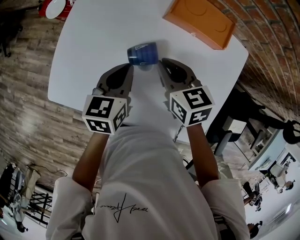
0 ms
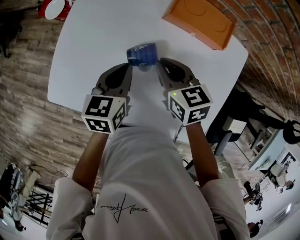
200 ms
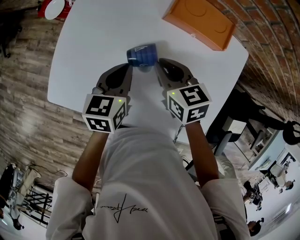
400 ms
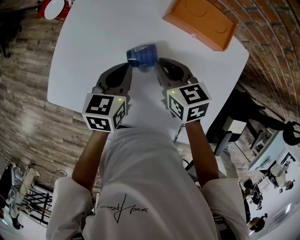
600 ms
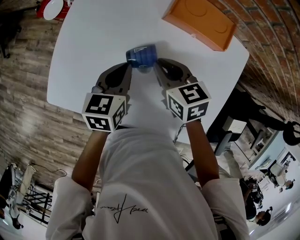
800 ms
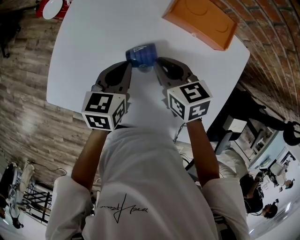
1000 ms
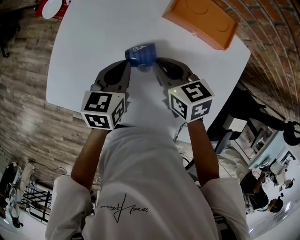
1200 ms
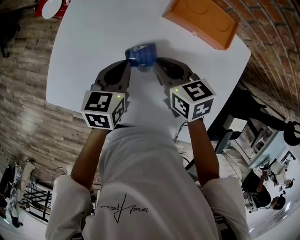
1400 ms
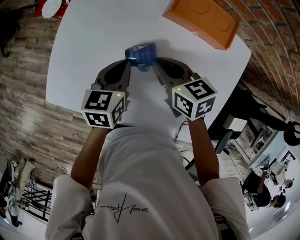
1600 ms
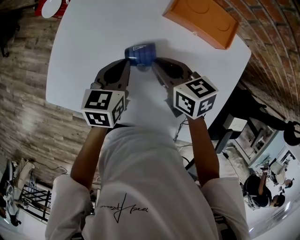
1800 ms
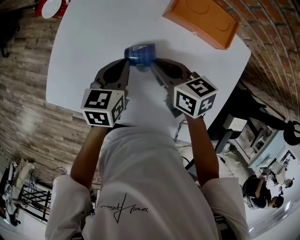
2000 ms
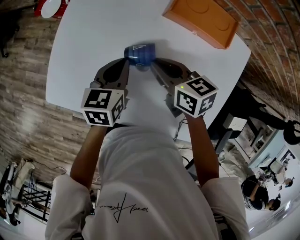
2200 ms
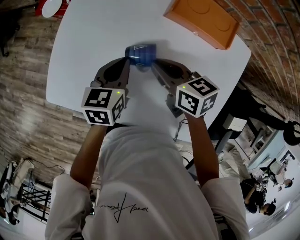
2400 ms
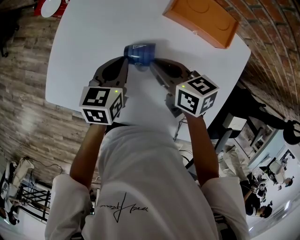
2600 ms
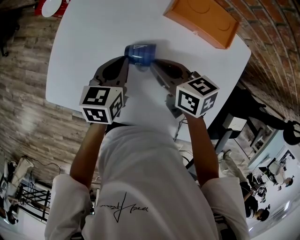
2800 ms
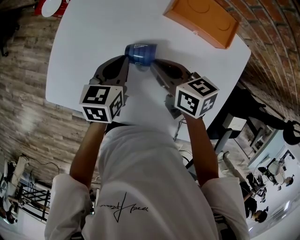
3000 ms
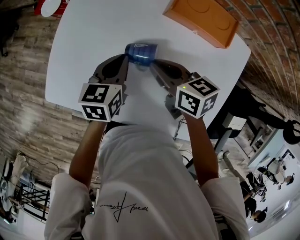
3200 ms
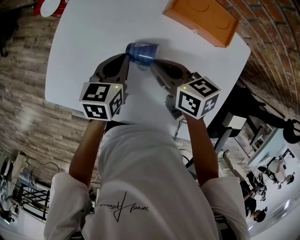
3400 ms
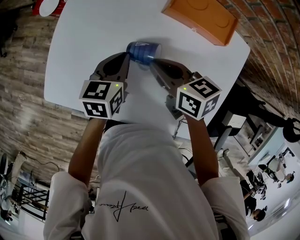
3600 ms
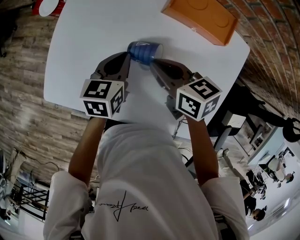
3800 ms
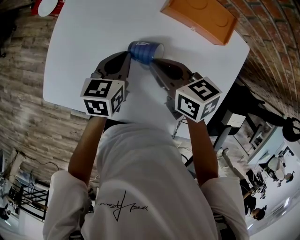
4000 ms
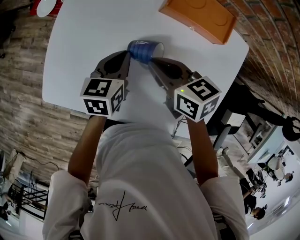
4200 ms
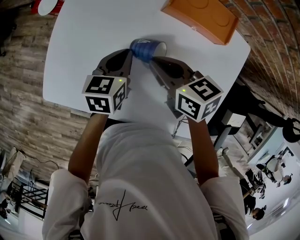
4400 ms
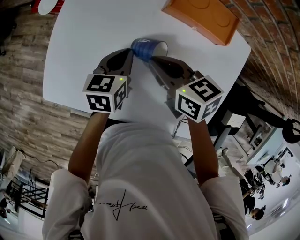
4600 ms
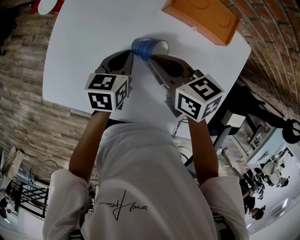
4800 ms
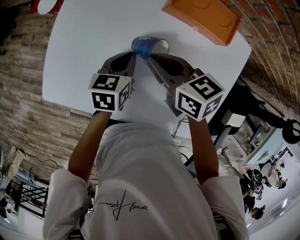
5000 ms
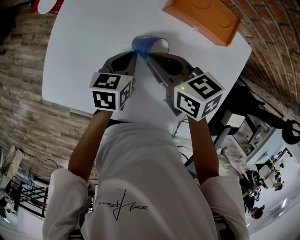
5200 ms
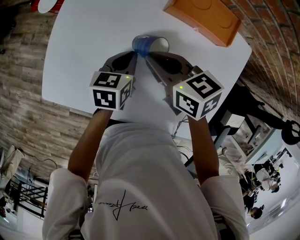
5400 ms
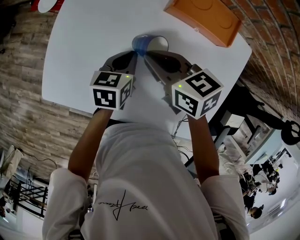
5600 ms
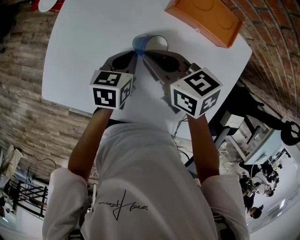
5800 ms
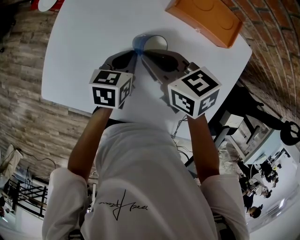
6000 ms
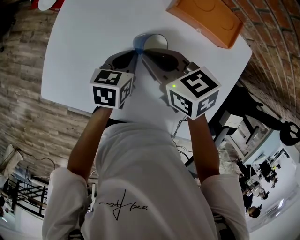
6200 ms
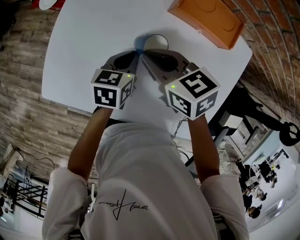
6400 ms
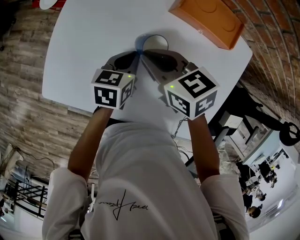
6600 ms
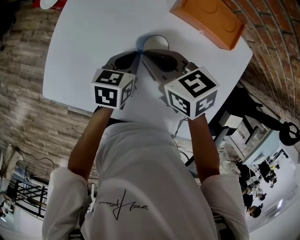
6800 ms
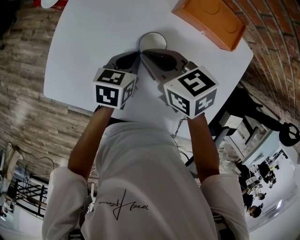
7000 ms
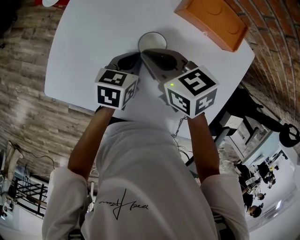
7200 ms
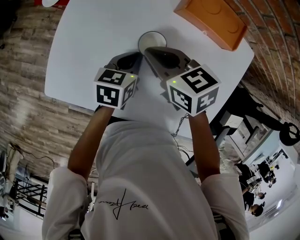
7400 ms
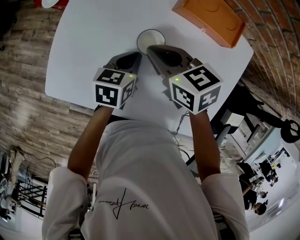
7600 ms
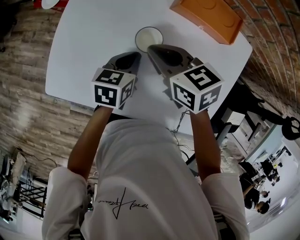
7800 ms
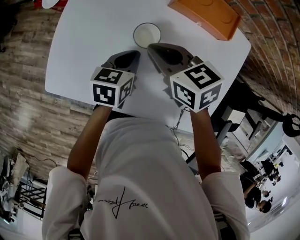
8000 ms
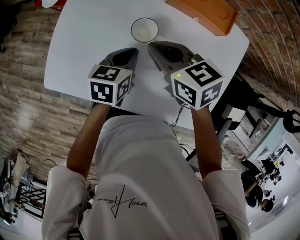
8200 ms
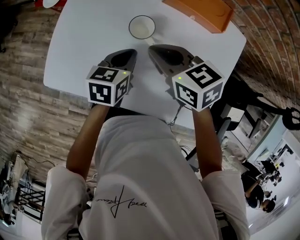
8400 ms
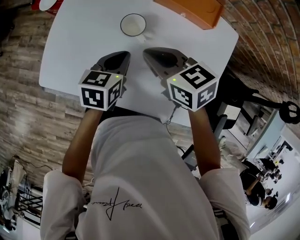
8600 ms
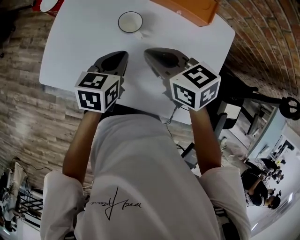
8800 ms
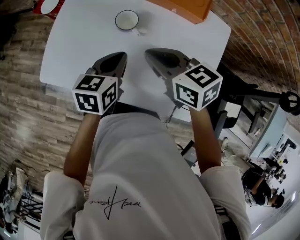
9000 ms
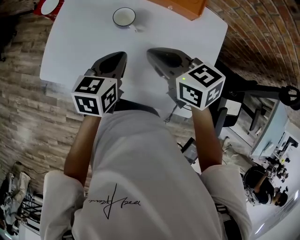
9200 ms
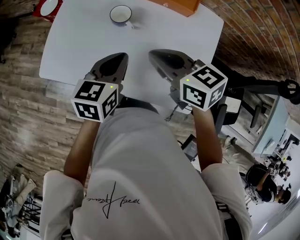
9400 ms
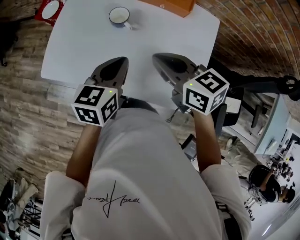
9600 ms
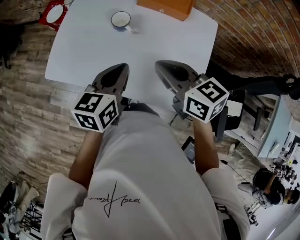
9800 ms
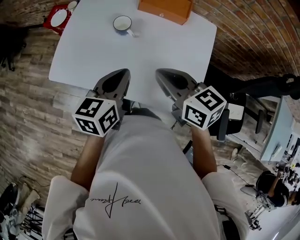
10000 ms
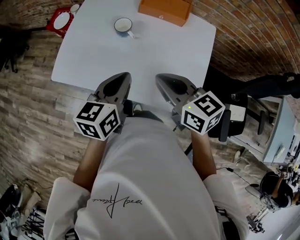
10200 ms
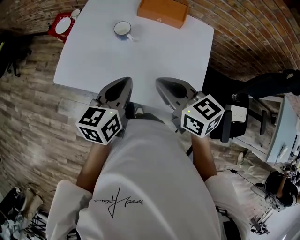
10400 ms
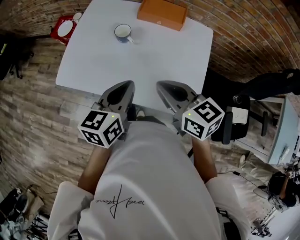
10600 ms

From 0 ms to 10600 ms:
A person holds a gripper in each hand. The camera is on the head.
From 0 ms to 1600 ms: The grippers move only a little.
From 1600 ms to 6000 ms: The grippers stay close to where they were, moving slightly.
From 6000 ms to 7600 ms: The grippers move only a little.
From 7600 ms to 9000 ms: The right gripper heads backward and upward, covering roughly 15 cm; the left gripper goes some 15 cm upward and backward.
From 9000 ms to 10600 ms: Both grippers move backward and upward, some 20 cm.

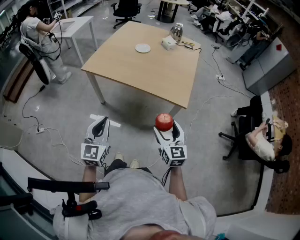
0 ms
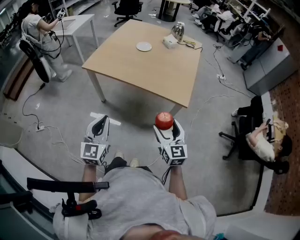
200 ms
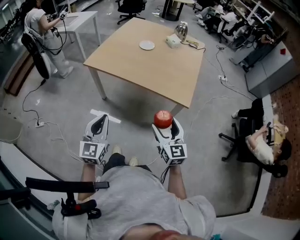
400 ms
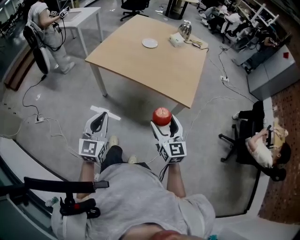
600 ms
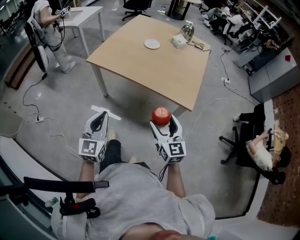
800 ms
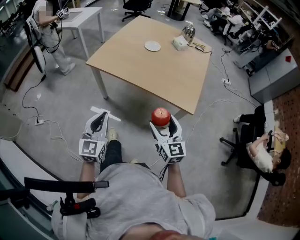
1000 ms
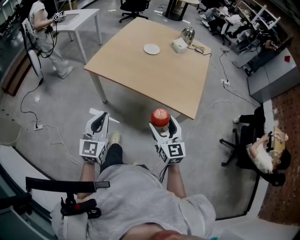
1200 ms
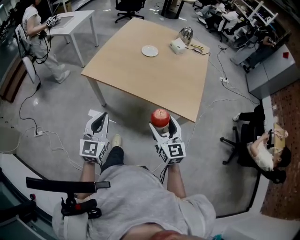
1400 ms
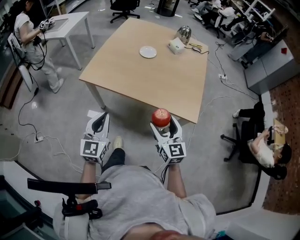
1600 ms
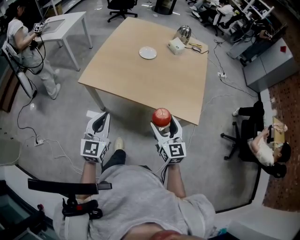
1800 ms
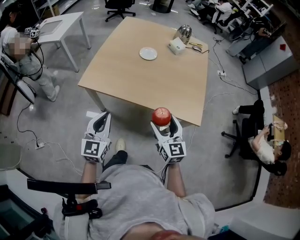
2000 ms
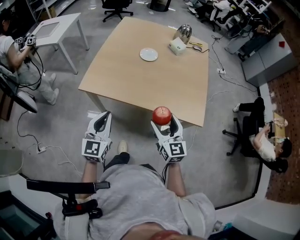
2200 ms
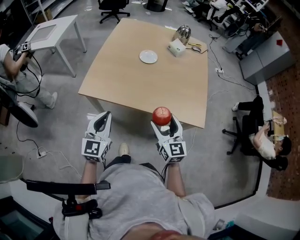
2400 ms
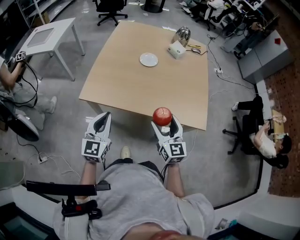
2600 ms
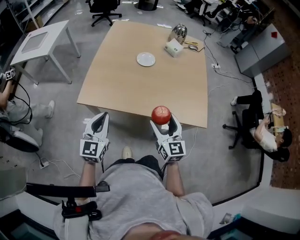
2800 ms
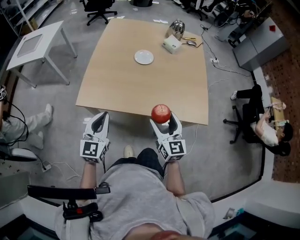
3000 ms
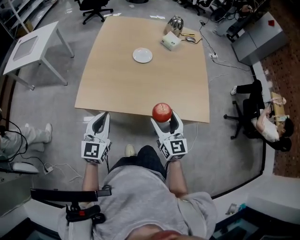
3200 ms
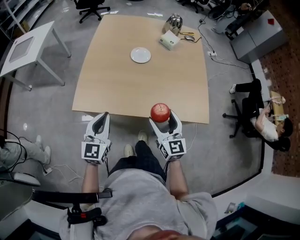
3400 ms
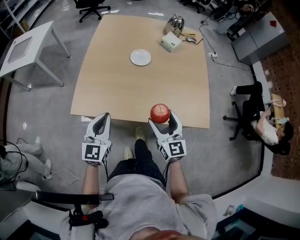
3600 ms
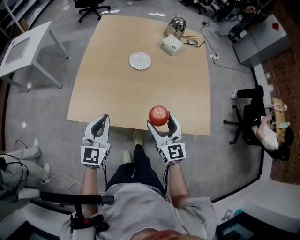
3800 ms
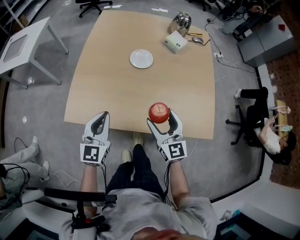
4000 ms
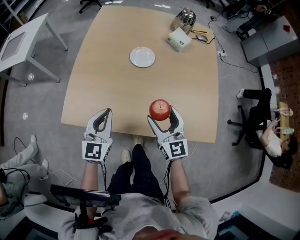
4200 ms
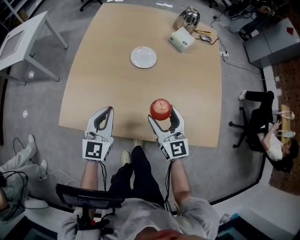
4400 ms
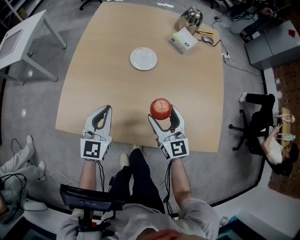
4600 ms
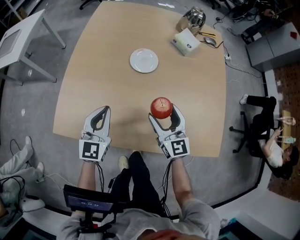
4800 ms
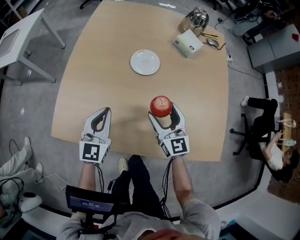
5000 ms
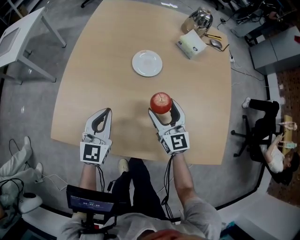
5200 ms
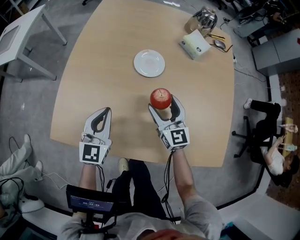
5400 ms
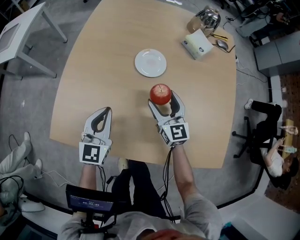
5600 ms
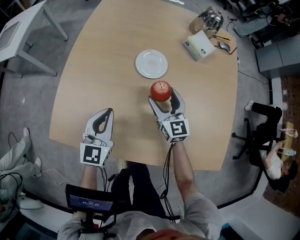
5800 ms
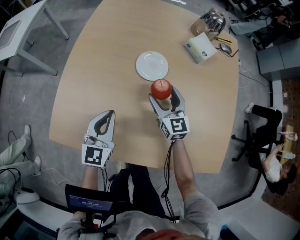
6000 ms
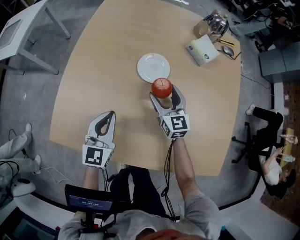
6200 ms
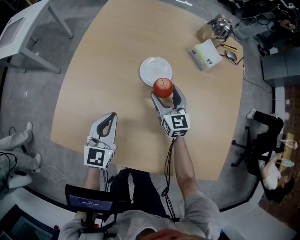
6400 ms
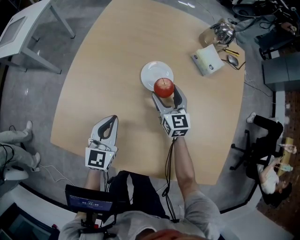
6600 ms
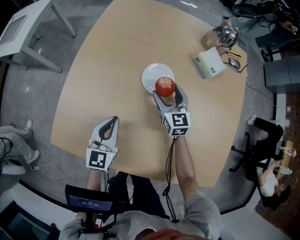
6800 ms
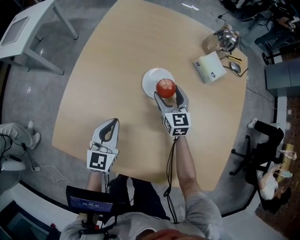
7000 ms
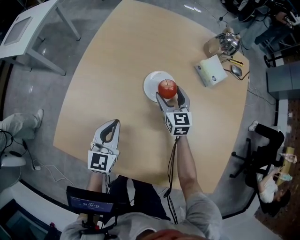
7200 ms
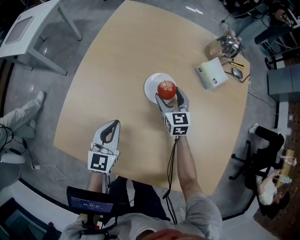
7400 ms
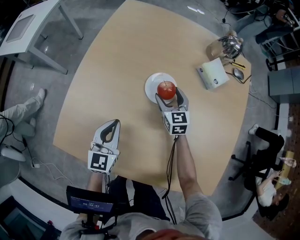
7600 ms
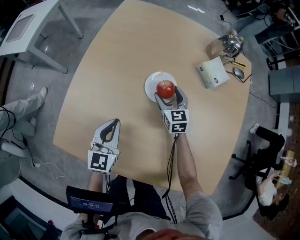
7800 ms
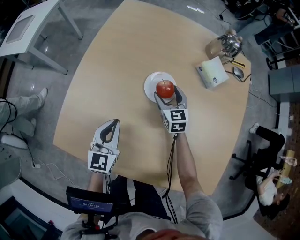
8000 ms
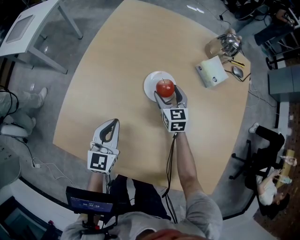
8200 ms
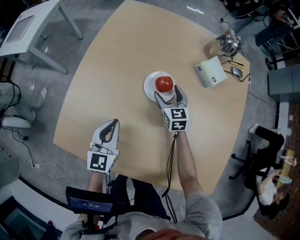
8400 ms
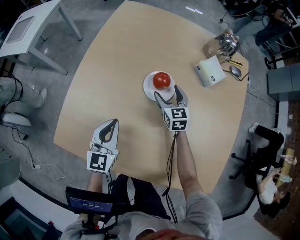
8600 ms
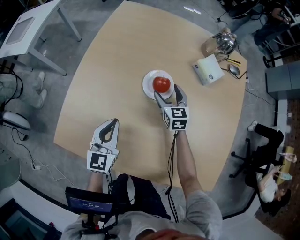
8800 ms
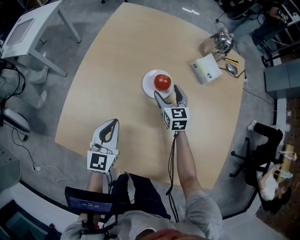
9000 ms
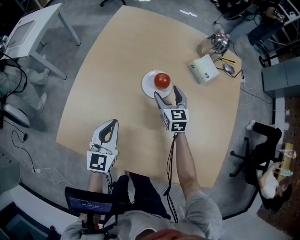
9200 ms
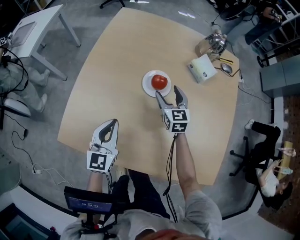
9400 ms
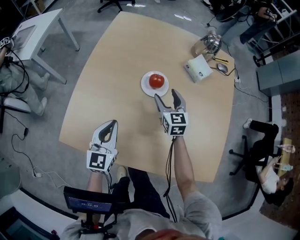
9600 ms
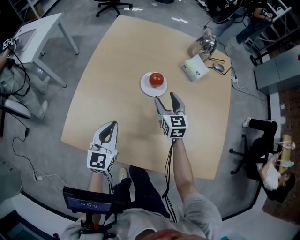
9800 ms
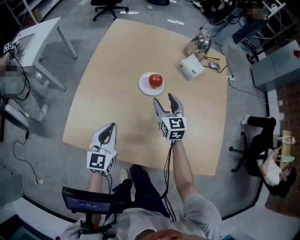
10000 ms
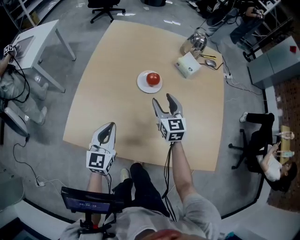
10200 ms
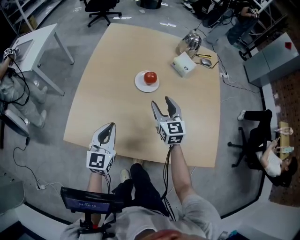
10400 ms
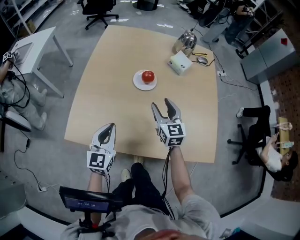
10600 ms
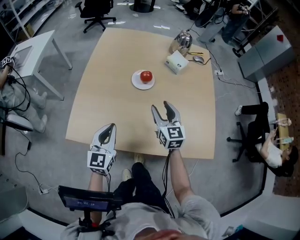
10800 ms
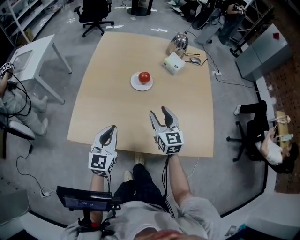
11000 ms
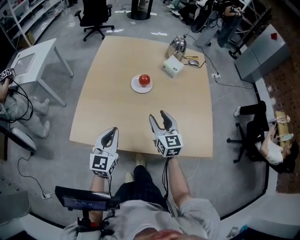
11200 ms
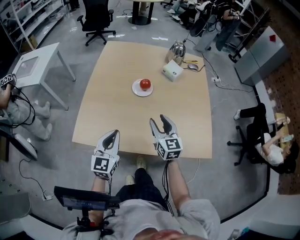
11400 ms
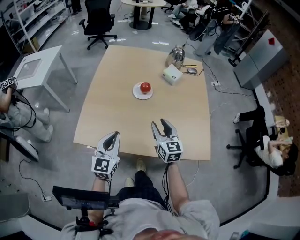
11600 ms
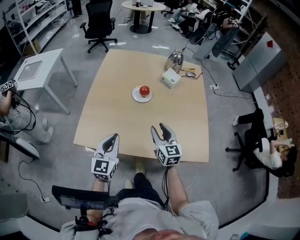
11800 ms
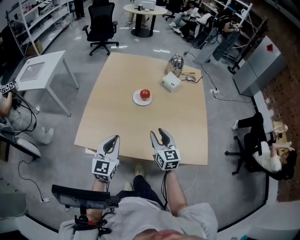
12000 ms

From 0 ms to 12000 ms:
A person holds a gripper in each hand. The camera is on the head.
From 0 ms to 1600 ms: The left gripper is displaced forward by approximately 20 cm. Meanwhile the right gripper heads forward and to the left, covering some 20 cm.
From 1600 ms to 3000 ms: The two grippers go roughly 20 cm forward and to the left.
From 3000 ms to 4400 ms: The two grippers go roughly 25 cm forward and downward.
From 4400 ms to 6000 ms: The right gripper goes some 25 cm forward and downward. Meanwhile the left gripper travels forward and downward by about 15 cm.
From 6000 ms to 7600 ms: The right gripper goes approximately 10 cm forward.
From 7600 ms to 9000 ms: There are only small adjustments of the grippers.
From 9000 ms to 10400 ms: The right gripper heads backward and upward, covering some 20 cm, while the left gripper shifts approximately 10 cm backward.
From 10400 ms to 12000 ms: The right gripper travels backward by approximately 20 cm. Meanwhile the left gripper goes roughly 15 cm backward and upward.

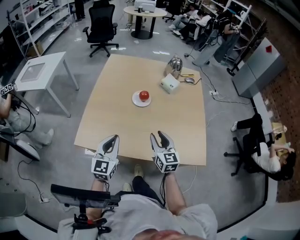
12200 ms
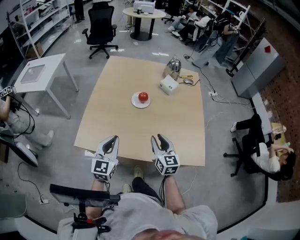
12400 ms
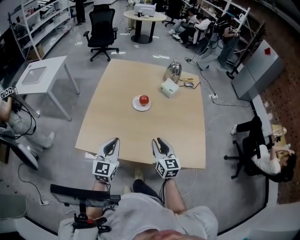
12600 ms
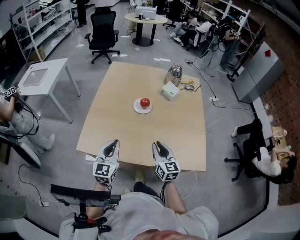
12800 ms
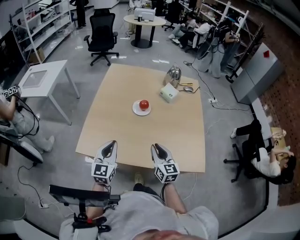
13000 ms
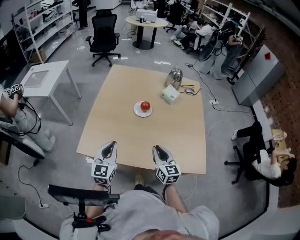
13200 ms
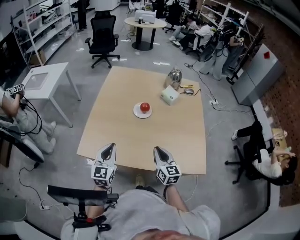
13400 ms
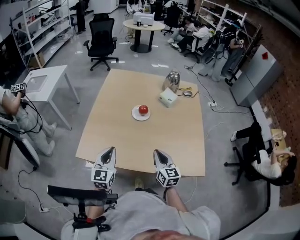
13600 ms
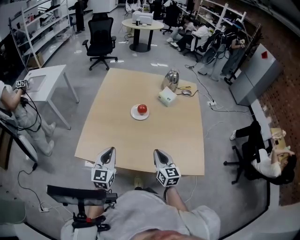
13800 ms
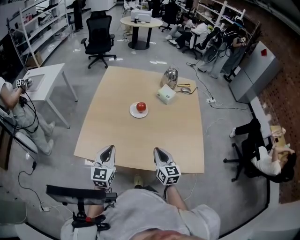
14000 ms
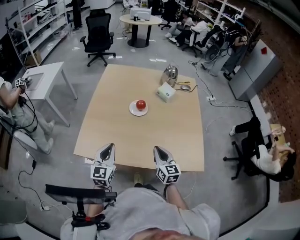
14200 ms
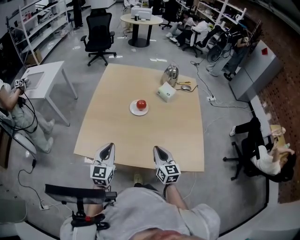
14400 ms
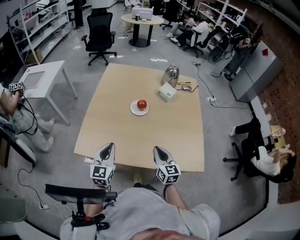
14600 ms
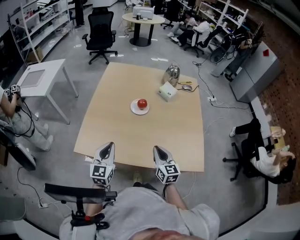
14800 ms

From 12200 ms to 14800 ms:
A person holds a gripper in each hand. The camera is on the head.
From 12200 ms to 14800 ms: The grippers make only small movements.
